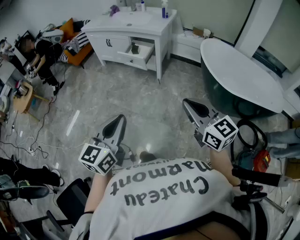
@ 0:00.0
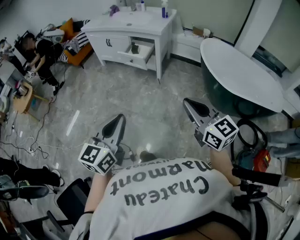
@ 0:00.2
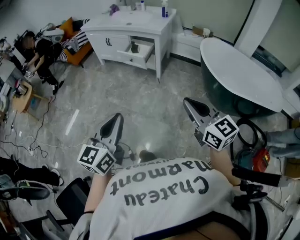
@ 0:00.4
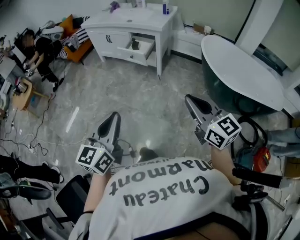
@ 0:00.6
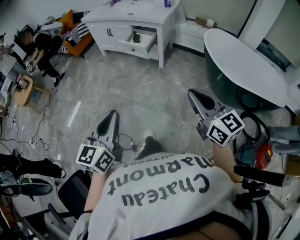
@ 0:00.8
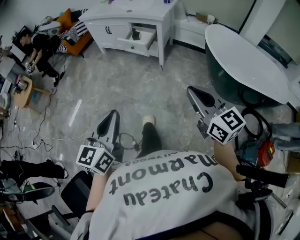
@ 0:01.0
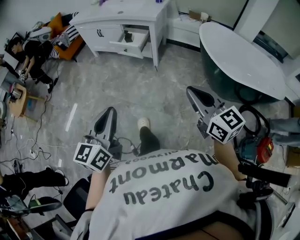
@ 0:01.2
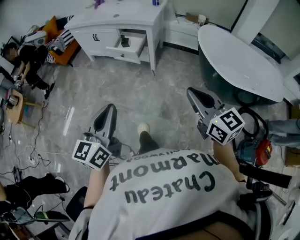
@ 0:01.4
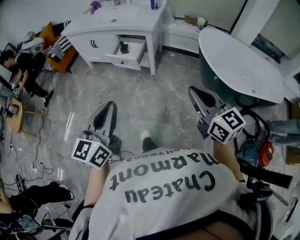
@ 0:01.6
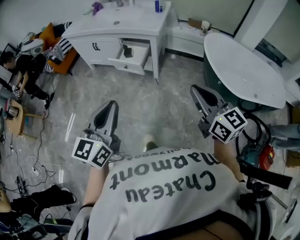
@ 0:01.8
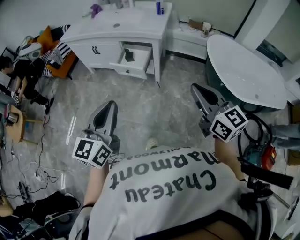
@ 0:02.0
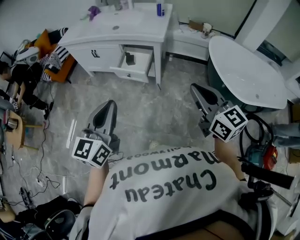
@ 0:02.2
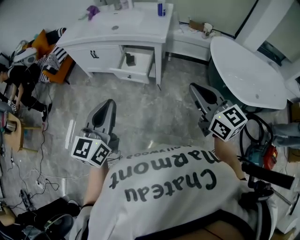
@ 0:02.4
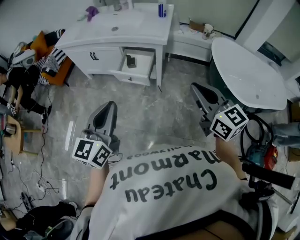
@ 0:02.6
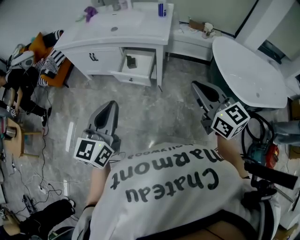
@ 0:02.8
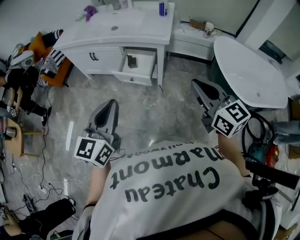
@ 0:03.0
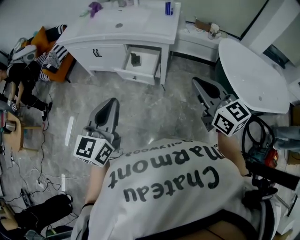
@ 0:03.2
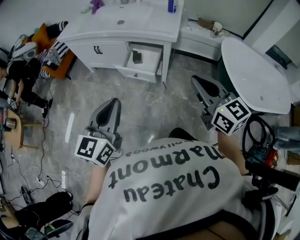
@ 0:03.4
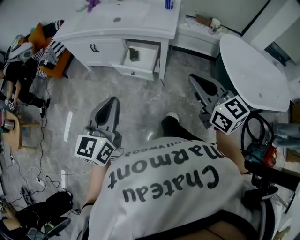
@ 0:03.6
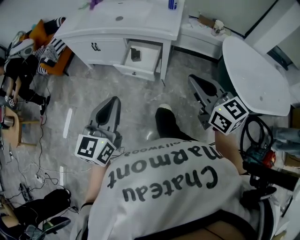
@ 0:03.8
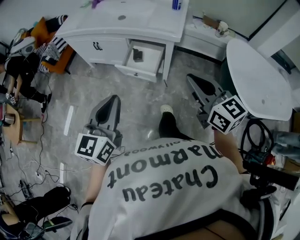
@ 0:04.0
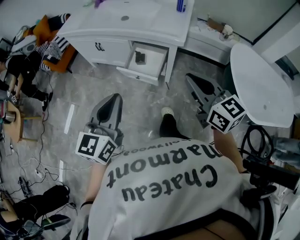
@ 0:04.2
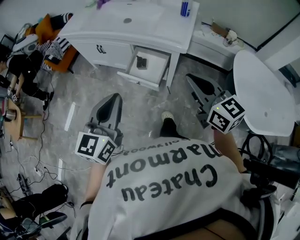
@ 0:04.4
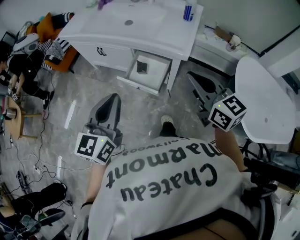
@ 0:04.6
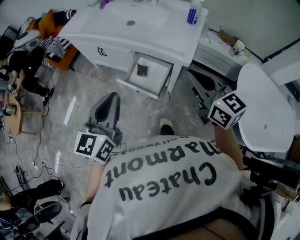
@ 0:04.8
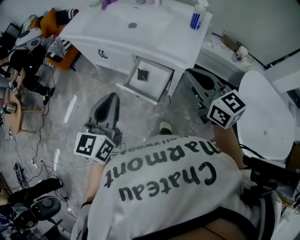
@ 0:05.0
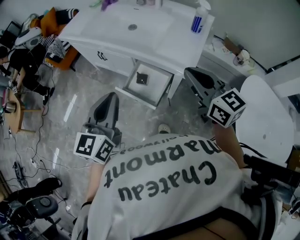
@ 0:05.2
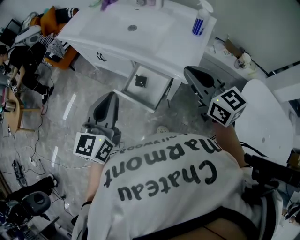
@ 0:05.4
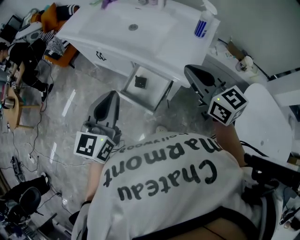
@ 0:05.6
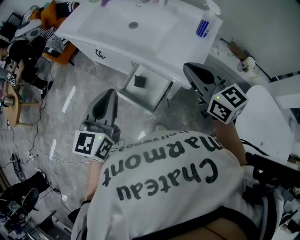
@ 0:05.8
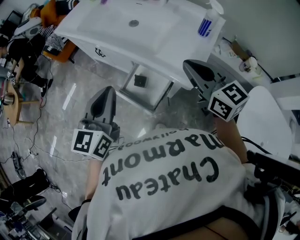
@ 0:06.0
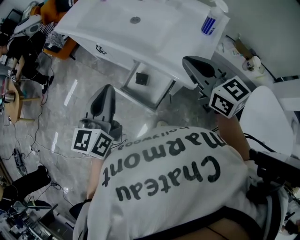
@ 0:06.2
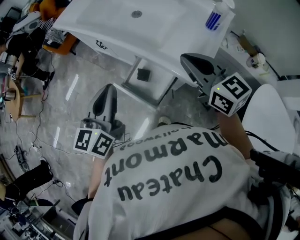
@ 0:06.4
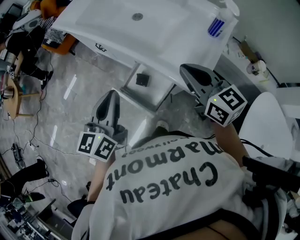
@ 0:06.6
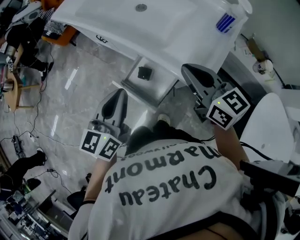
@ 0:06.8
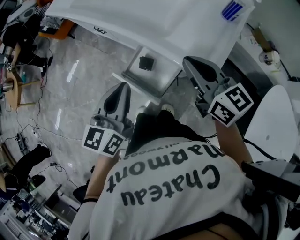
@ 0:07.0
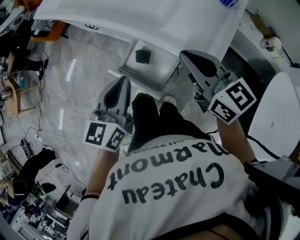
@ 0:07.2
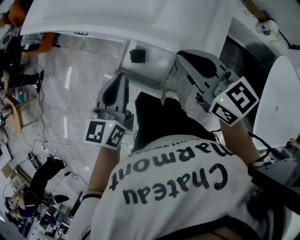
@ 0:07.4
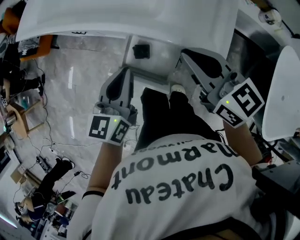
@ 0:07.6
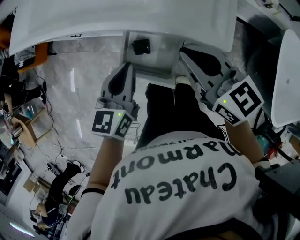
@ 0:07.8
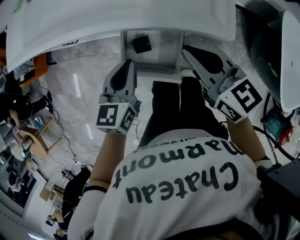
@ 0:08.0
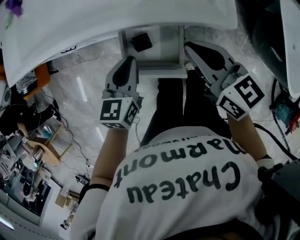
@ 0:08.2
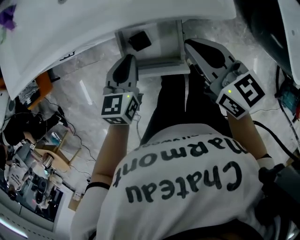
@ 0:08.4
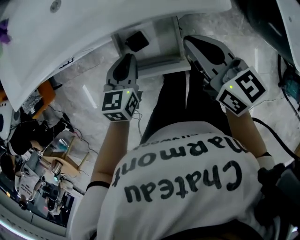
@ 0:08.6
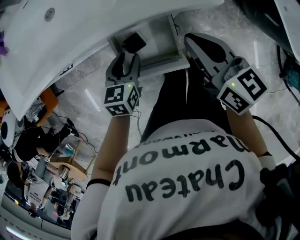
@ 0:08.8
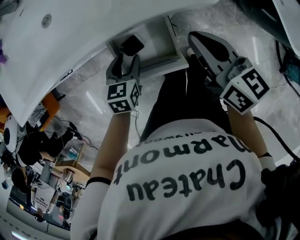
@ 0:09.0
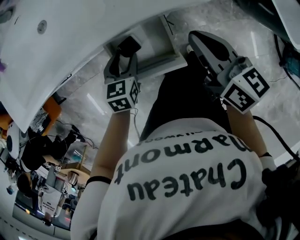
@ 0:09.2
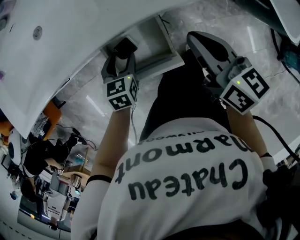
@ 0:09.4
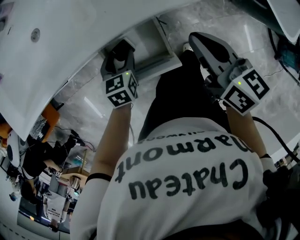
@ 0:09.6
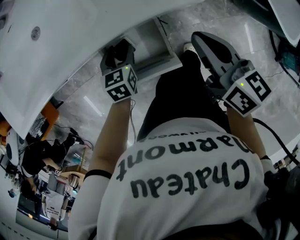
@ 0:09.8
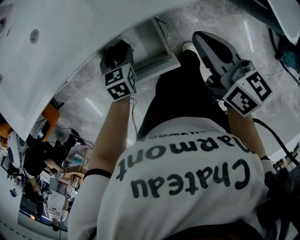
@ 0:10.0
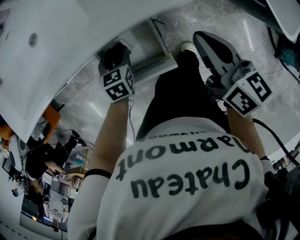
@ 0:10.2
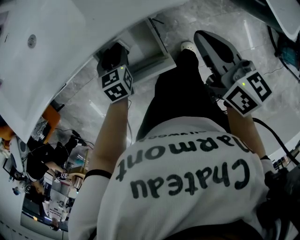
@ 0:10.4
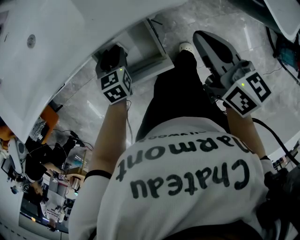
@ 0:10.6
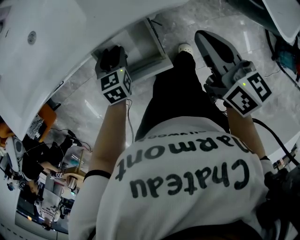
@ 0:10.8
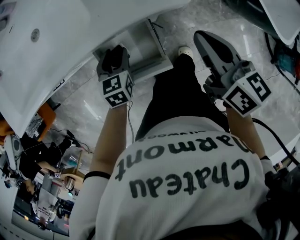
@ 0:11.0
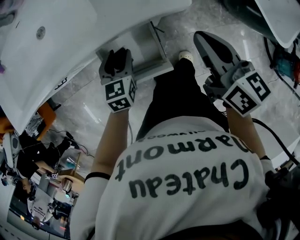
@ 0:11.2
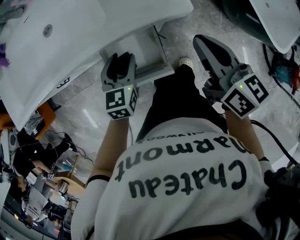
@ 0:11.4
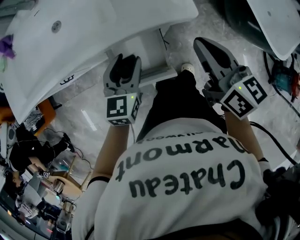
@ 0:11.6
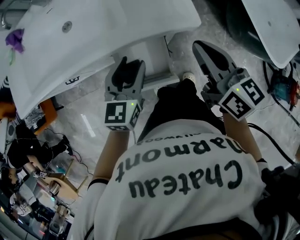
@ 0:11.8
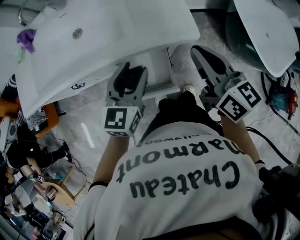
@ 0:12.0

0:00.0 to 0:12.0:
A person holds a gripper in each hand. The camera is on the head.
0:00.0 to 0:01.6: Both grippers move forward, roughly 15 cm.
0:01.6 to 0:03.0: Both grippers move forward and to the left, about 25 cm.
0:03.0 to 0:04.4: The grippers both shift forward by roughly 15 cm.
0:04.4 to 0:06.0: Both grippers move forward, roughly 20 cm.
0:06.0 to 0:07.6: The right gripper travels downward and to the left by roughly 10 cm. Meanwhile the left gripper shifts some 15 cm downward.
0:07.6 to 0:09.0: The right gripper is displaced downward by about 10 cm, and swivels approximately 50 degrees. The left gripper shifts approximately 20 cm downward, changes its angle by approximately 40 degrees, and opens.
0:09.0 to 0:10.4: The right gripper is displaced to the right by roughly 5 cm, while the left gripper moves roughly 5 cm.
0:10.4 to 0:12.0: The left gripper moves upward, some 25 cm, and angles its fingers upward, by approximately 30 degrees, while the right gripper moves upward and to the left, approximately 15 cm, and rotates about 20 degrees.

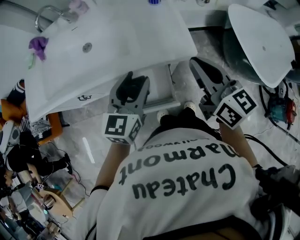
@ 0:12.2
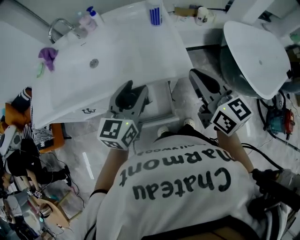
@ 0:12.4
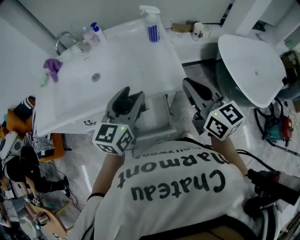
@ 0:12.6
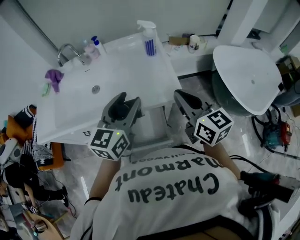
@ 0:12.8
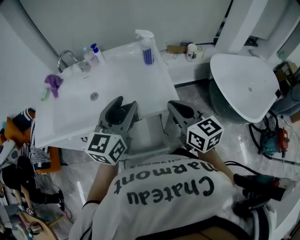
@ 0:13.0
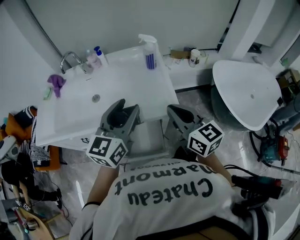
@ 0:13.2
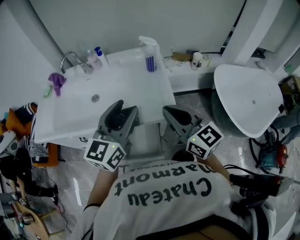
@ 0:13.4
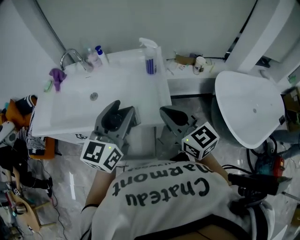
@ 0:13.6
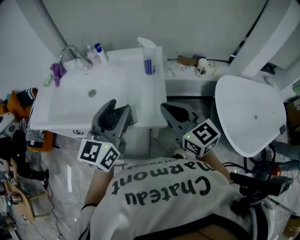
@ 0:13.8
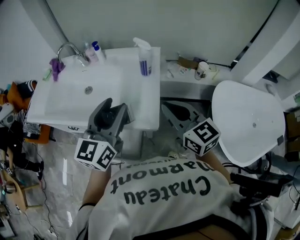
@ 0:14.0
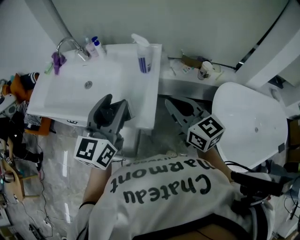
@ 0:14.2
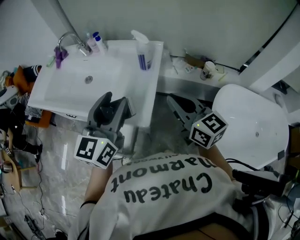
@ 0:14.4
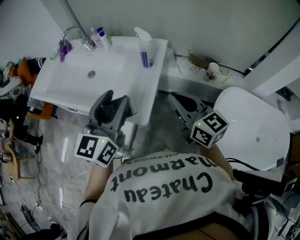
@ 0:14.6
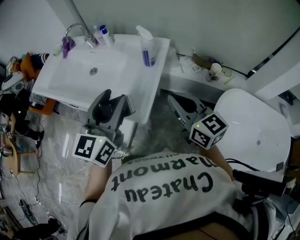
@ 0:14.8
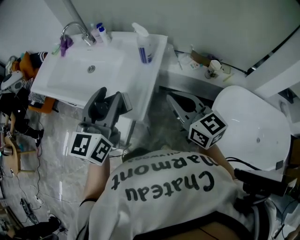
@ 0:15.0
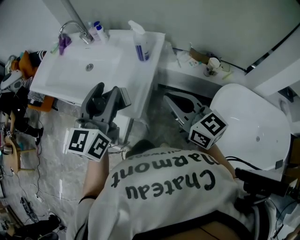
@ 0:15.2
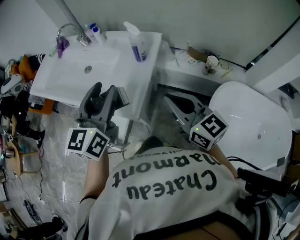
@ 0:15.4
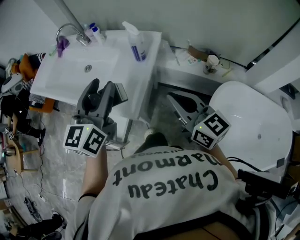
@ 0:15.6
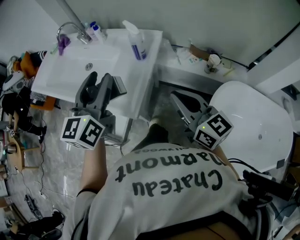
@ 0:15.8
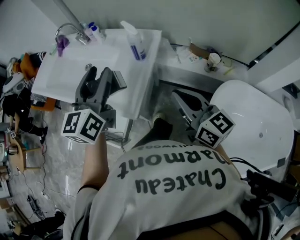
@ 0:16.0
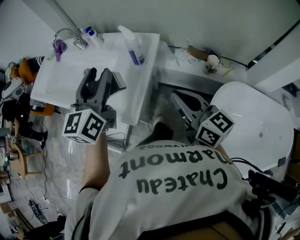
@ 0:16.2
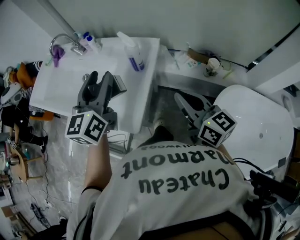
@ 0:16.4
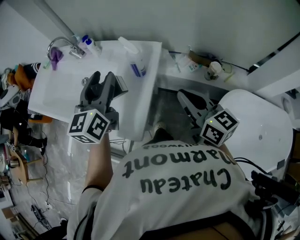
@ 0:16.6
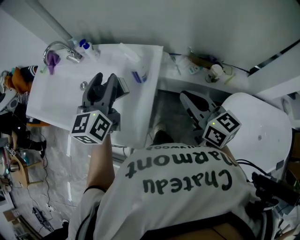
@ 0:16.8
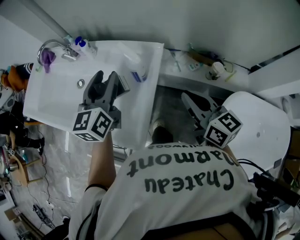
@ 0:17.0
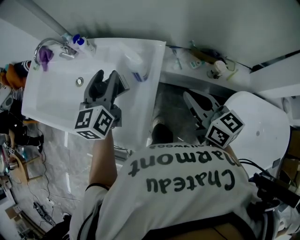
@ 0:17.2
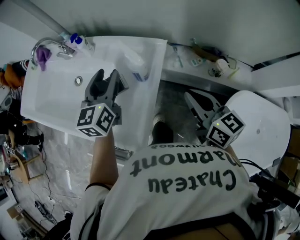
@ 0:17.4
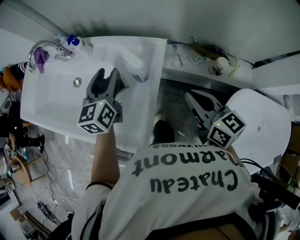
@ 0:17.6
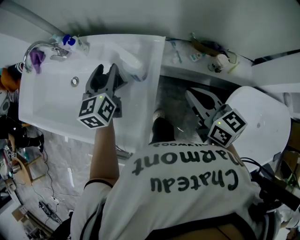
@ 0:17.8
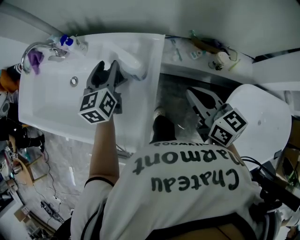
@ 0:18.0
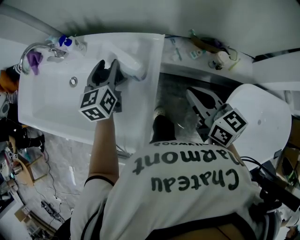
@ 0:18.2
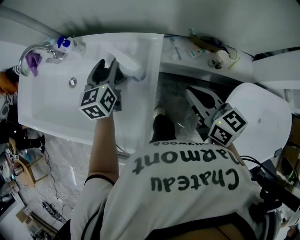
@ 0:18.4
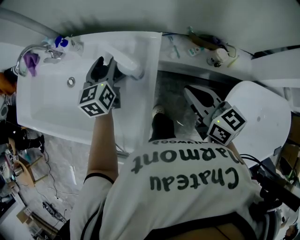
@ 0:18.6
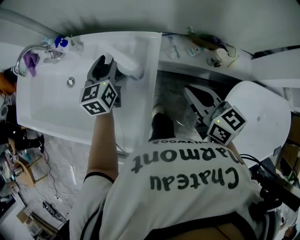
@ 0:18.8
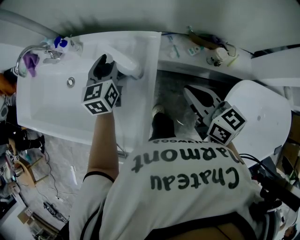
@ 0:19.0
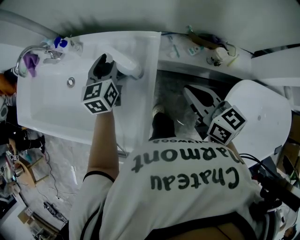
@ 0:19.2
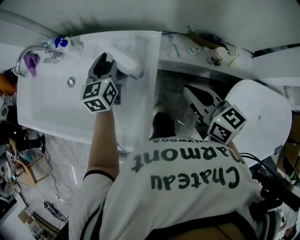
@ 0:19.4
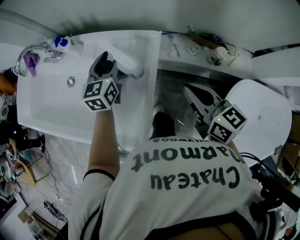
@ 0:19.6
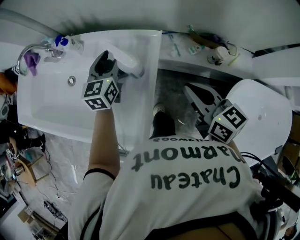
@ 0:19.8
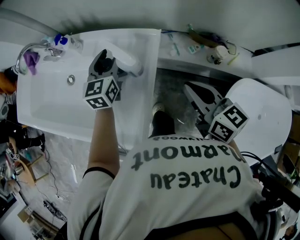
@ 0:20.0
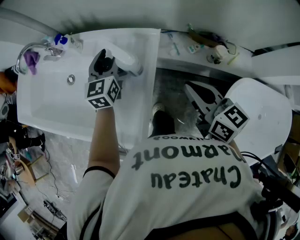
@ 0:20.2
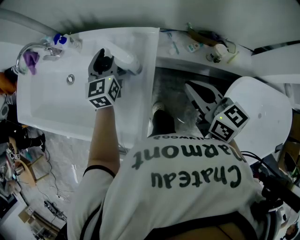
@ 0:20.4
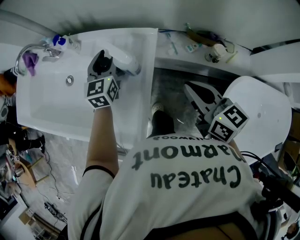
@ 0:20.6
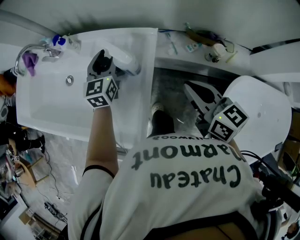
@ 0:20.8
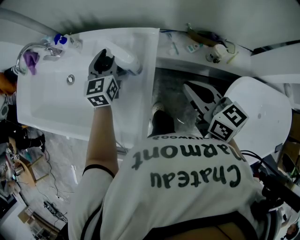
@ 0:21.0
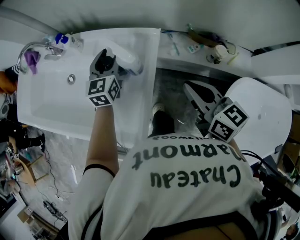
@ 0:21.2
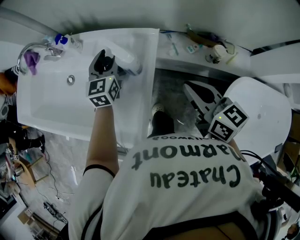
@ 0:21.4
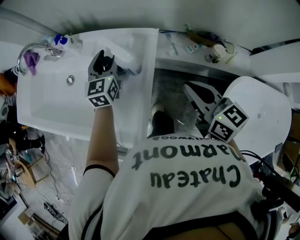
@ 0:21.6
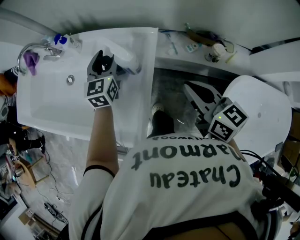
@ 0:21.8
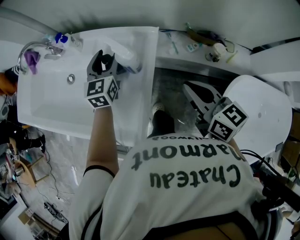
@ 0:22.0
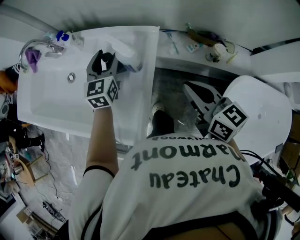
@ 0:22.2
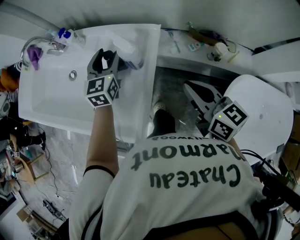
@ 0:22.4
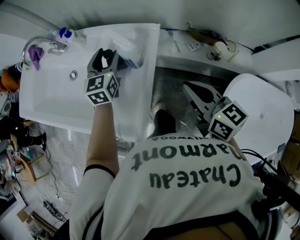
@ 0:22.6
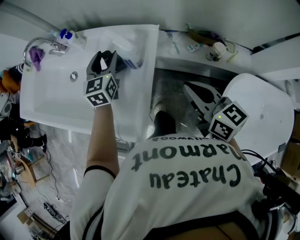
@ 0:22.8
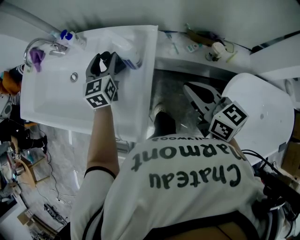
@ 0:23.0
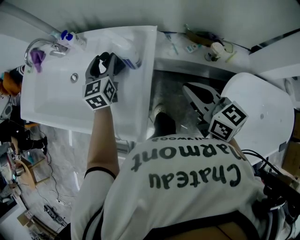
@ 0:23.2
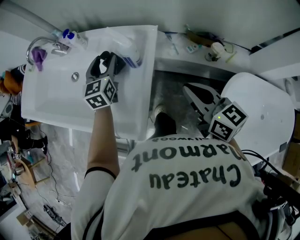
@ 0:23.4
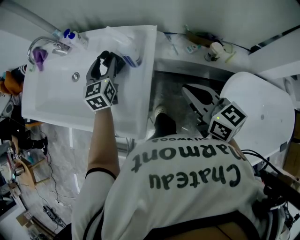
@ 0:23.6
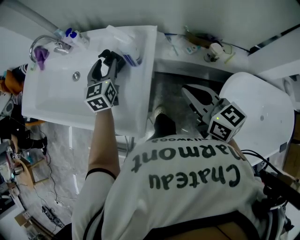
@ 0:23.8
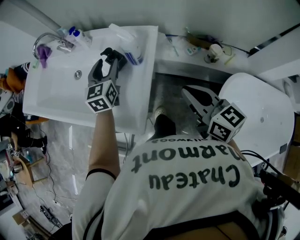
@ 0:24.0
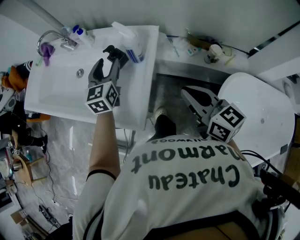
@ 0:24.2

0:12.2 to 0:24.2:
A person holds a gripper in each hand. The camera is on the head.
0:12.2 to 0:13.8: The left gripper heads upward and forward, covering some 15 cm. The right gripper travels forward and upward by roughly 10 cm, and rotates roughly 20 degrees.
0:13.8 to 0:15.2: The two grippers go approximately 10 cm to the right. The left gripper changes its angle by approximately 20 degrees. Meanwhile the right gripper turns by roughly 20 degrees.
0:15.2 to 0:16.6: The right gripper is displaced forward and to the right by roughly 15 cm, while the left gripper heads forward, covering some 15 cm.
0:16.6 to 0:18.2: The right gripper shifts approximately 10 cm forward and downward, while the left gripper heads forward and downward, covering some 20 cm.
0:18.2 to 0:22.6: There are only small adjustments of the grippers.
0:22.6 to 0:24.2: Both grippers travel together backward, roughly 10 cm.
